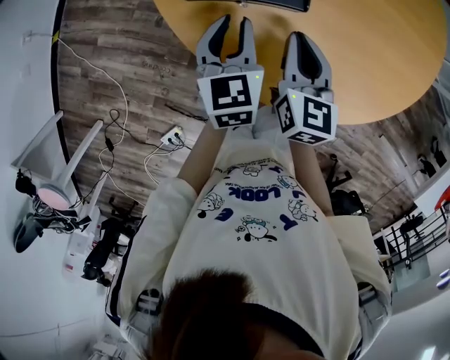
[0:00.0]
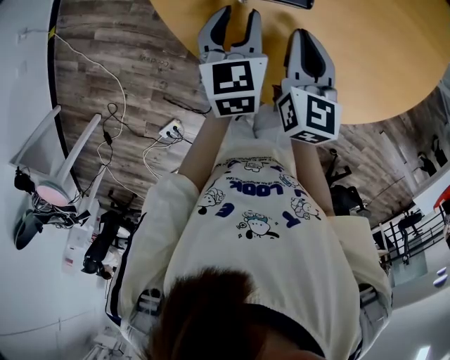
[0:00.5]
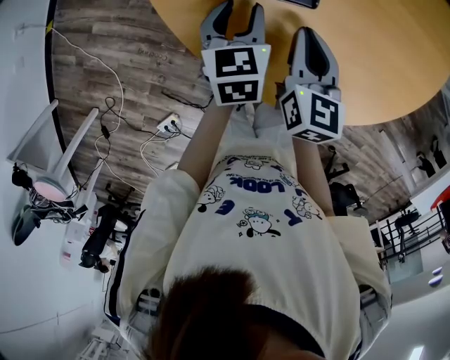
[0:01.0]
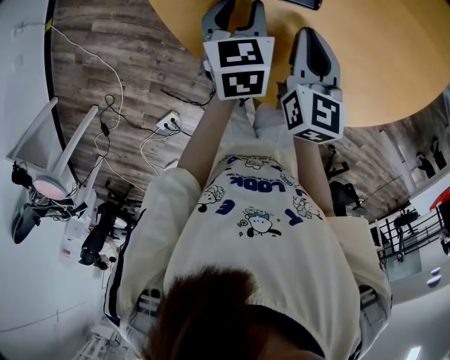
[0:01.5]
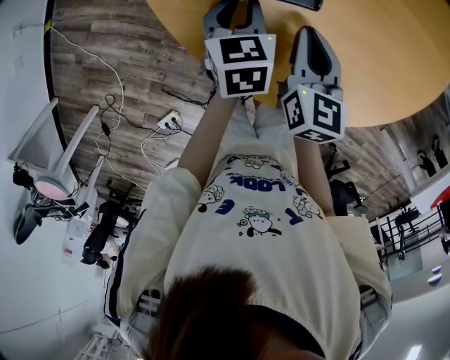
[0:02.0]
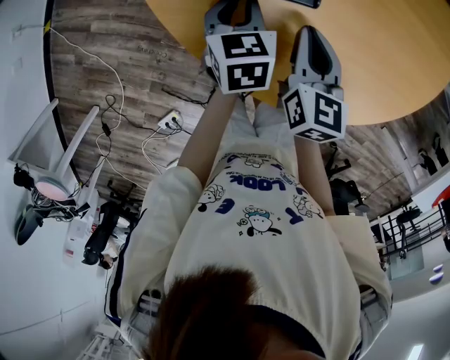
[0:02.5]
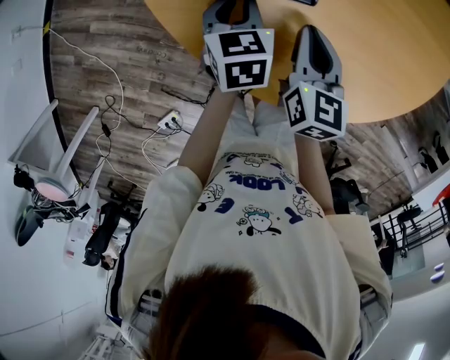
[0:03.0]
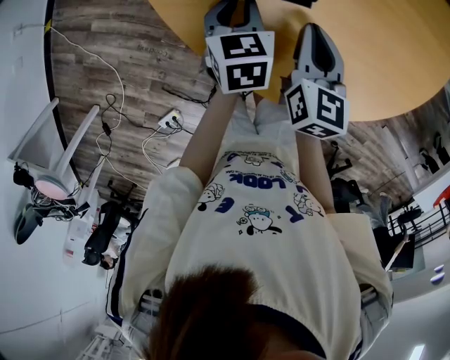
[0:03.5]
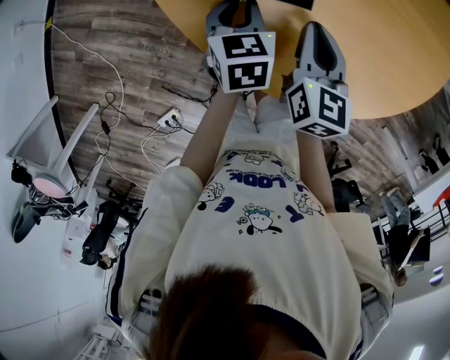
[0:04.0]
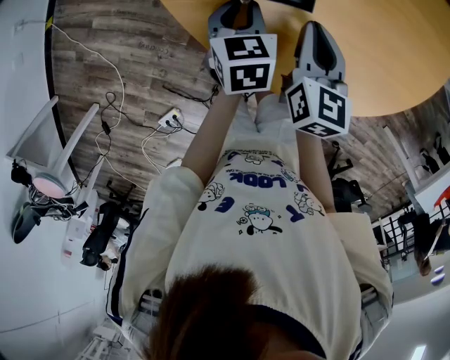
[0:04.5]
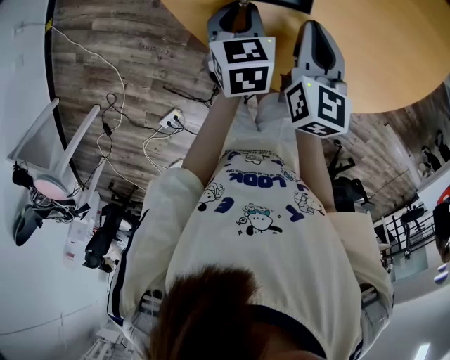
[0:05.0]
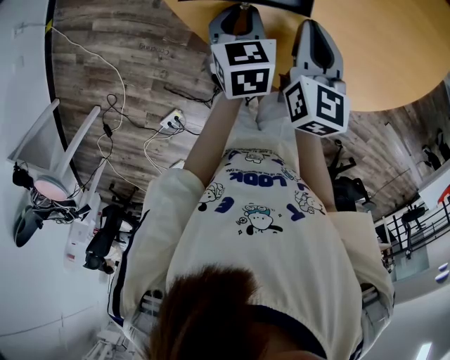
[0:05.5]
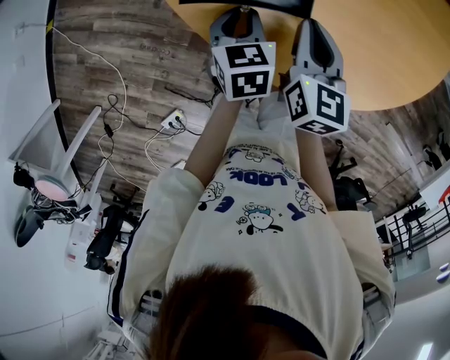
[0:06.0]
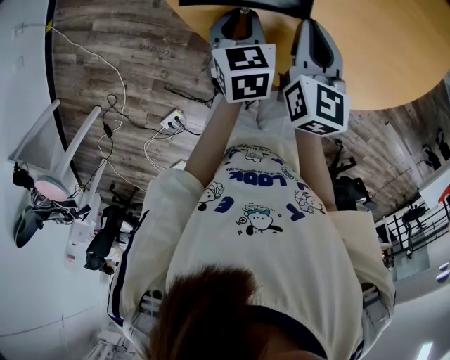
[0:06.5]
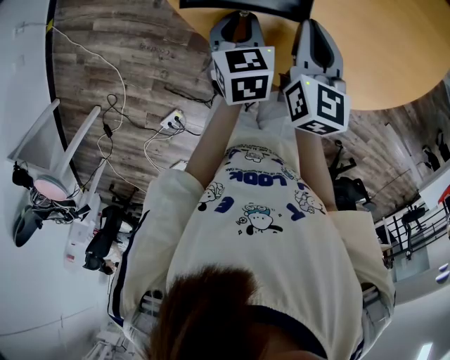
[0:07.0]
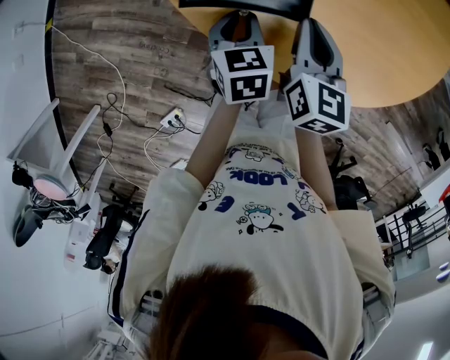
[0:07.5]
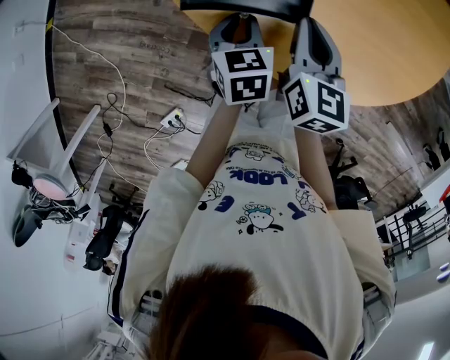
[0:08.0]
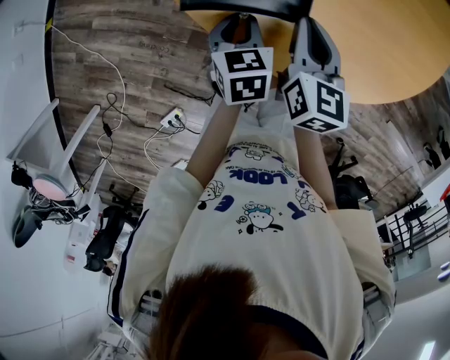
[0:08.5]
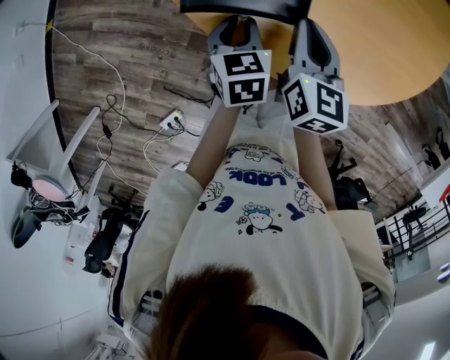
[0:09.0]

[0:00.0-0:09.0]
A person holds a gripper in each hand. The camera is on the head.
0:00.0 to 0:02.0: The left gripper heads downward, covering about 5 cm.
0:02.0 to 0:04.5: The grippers stay close to where they were, moving slightly.
0:04.5 to 0:07.0: There are only small adjustments of the grippers.
0:07.0 to 0:09.0: The grippers stay close to where they were, moving slightly.

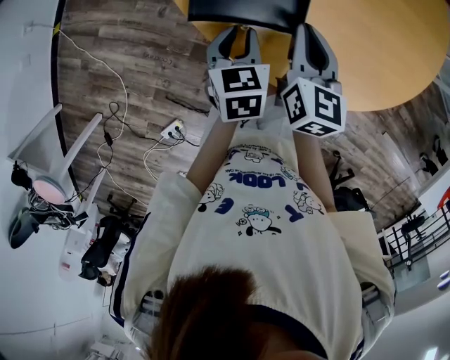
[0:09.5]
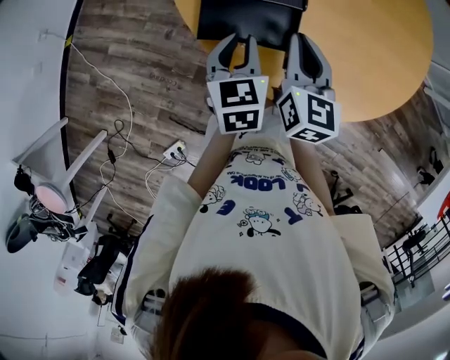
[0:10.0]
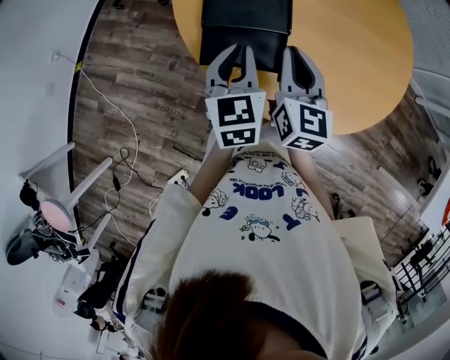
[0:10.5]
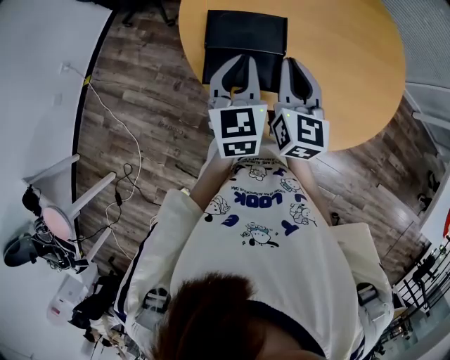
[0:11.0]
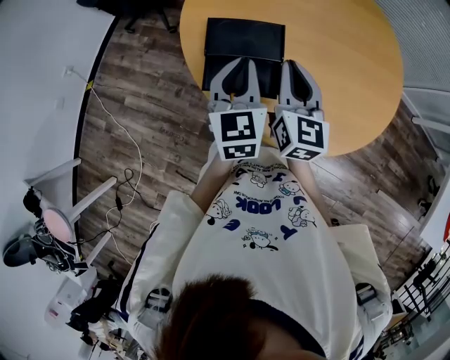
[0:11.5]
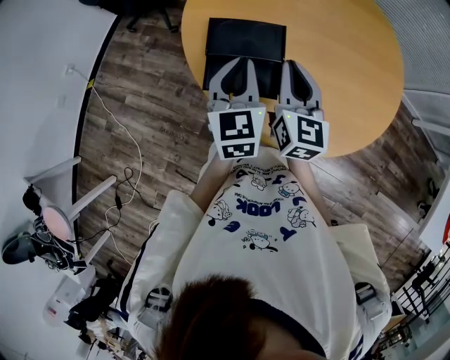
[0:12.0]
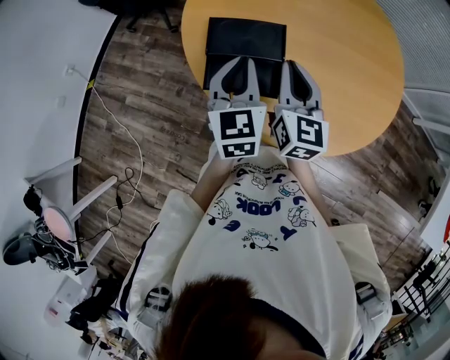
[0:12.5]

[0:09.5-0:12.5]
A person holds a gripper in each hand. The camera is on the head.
0:09.5 to 0:11.0: The two grippers go some 15 cm upward. The left gripper turns by about 30 degrees.
0:11.0 to 0:12.5: The grippers stay close to where they were, moving slightly.

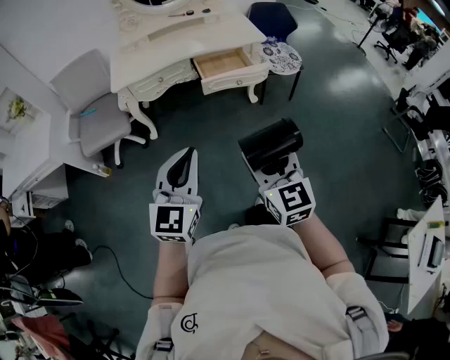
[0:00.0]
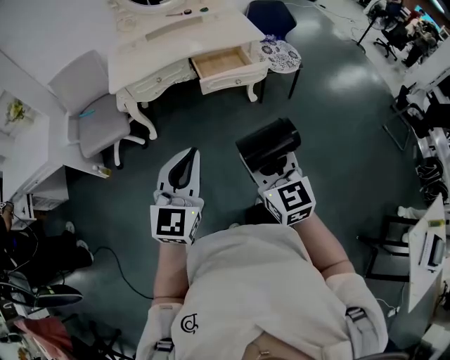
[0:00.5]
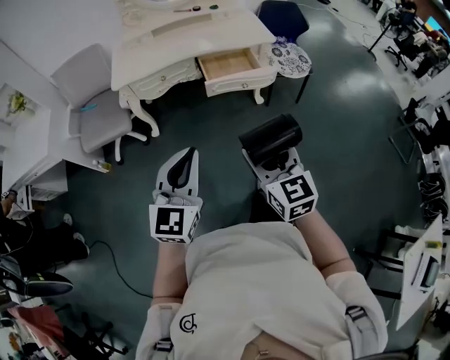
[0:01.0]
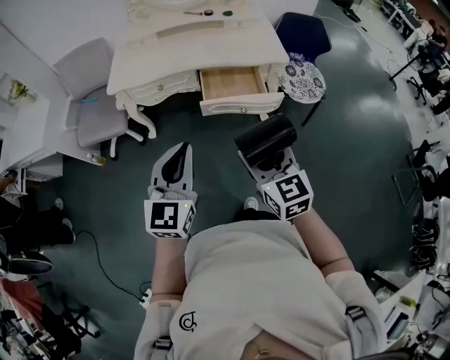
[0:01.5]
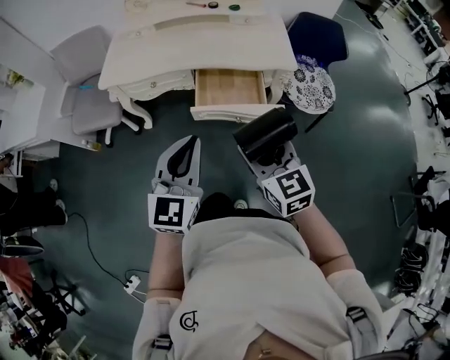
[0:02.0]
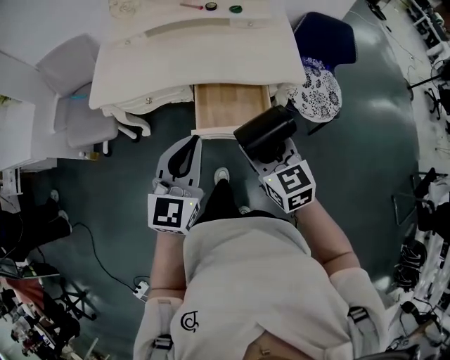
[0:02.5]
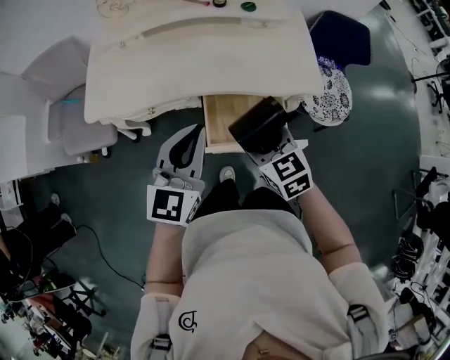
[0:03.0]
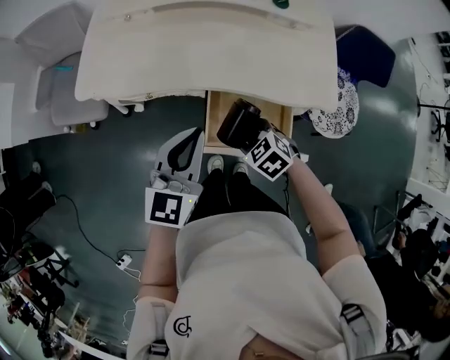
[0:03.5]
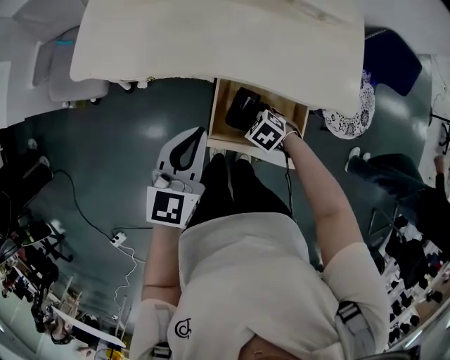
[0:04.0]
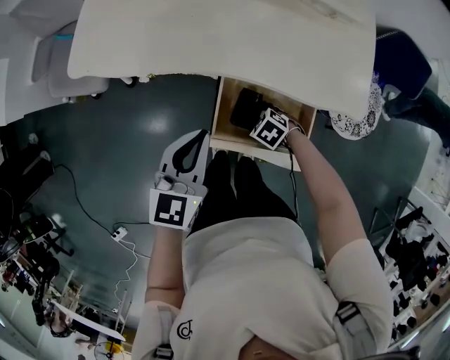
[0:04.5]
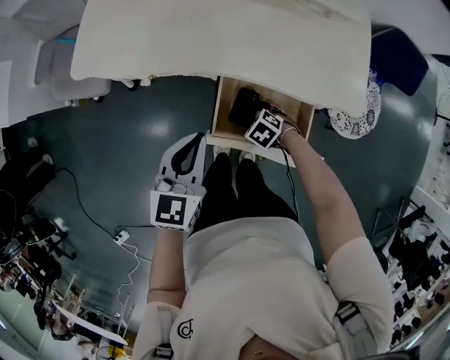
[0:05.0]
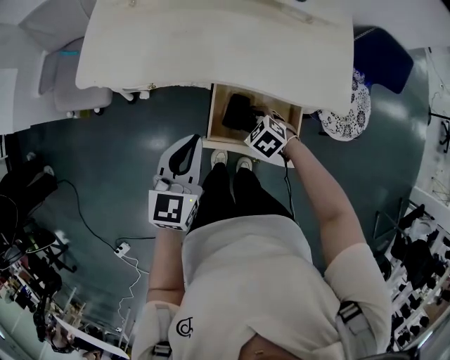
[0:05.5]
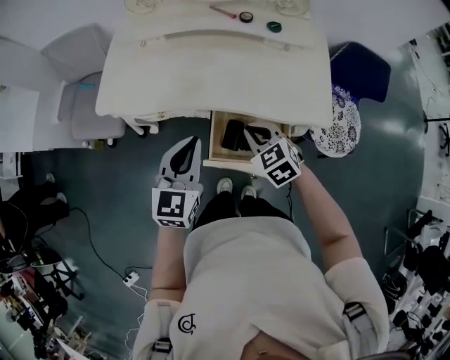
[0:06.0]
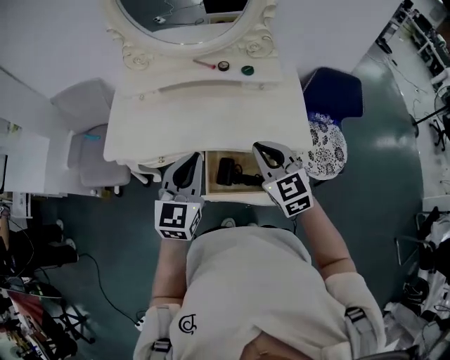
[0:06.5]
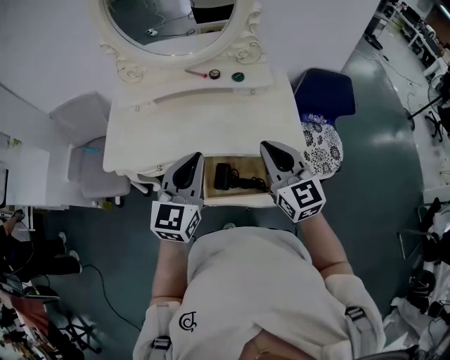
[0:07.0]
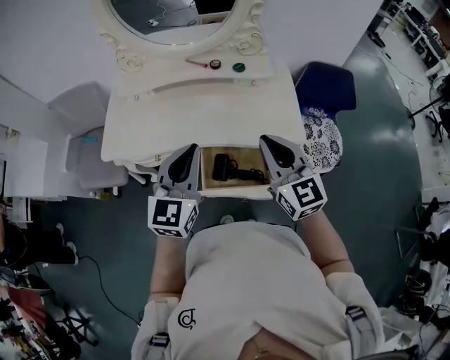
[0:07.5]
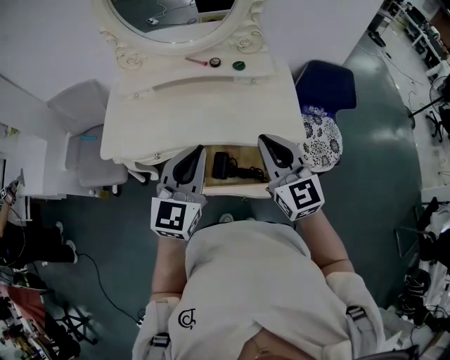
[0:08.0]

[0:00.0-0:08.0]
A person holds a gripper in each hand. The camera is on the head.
0:00.0 to 0:02.0: The two grippers go some 35 cm forward and to the right. The right gripper rotates about 20 degrees.
0:02.0 to 0:04.0: The left gripper changes place by approximately 35 cm, while the right gripper moves downward, approximately 35 cm, and tilts its fingers some 50 degrees downward.
0:04.0 to 0:06.0: The left gripper is displaced upward by about 5 cm; the right gripper shifts approximately 20 cm upward, turns by about 40 degrees, and closes.
0:06.0 to 0:08.0: The right gripper travels upward and to the right by roughly 25 cm, and tilts its fingers about 40 degrees upward; the left gripper heads upward and to the right, covering some 15 cm.

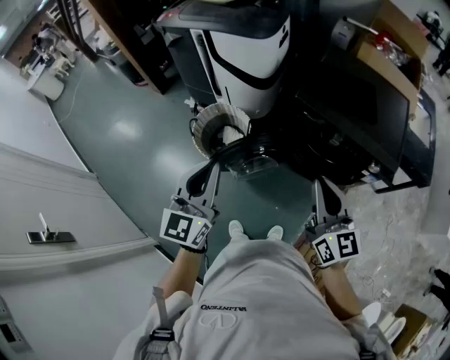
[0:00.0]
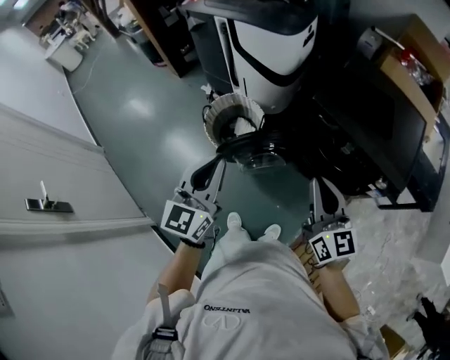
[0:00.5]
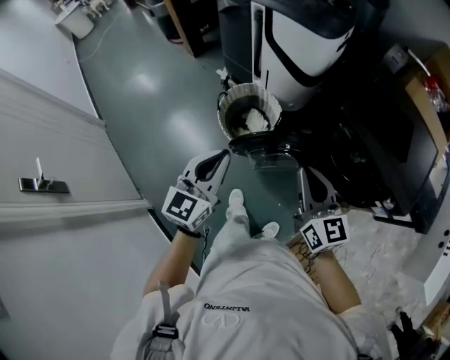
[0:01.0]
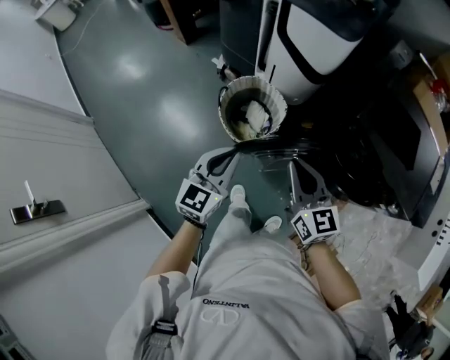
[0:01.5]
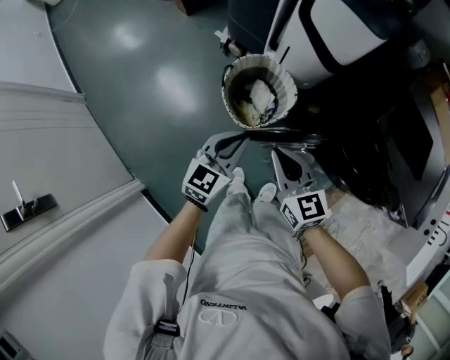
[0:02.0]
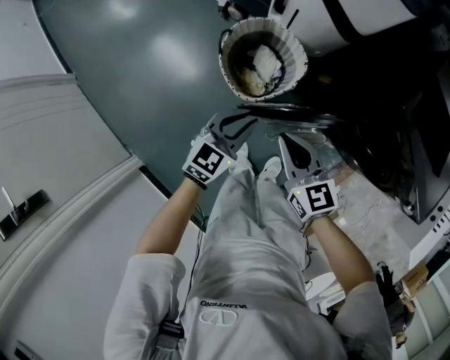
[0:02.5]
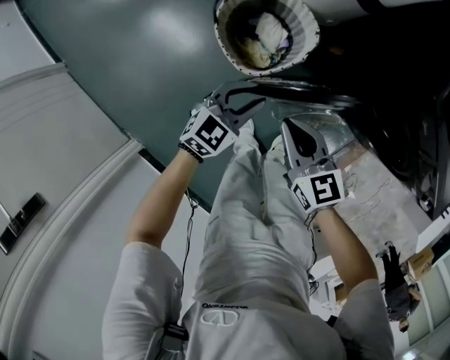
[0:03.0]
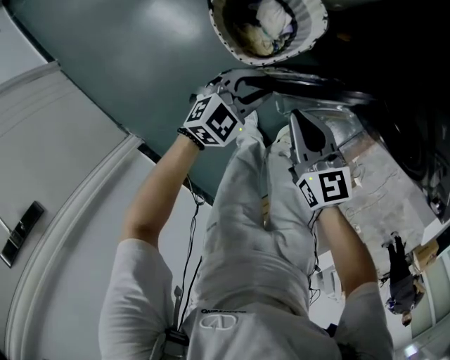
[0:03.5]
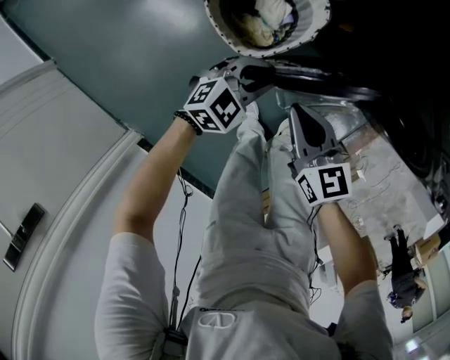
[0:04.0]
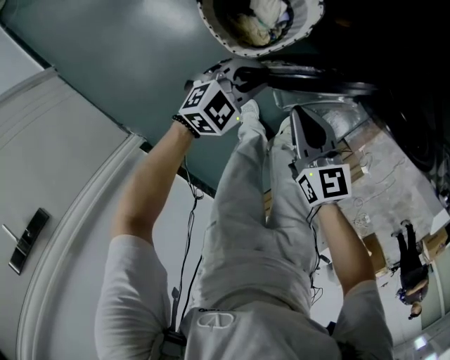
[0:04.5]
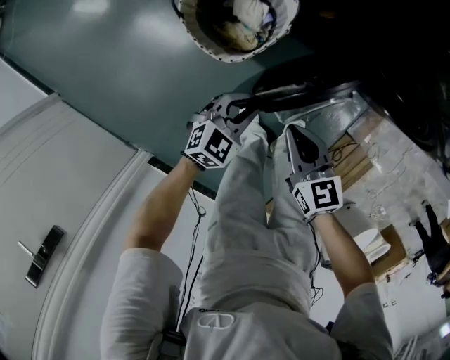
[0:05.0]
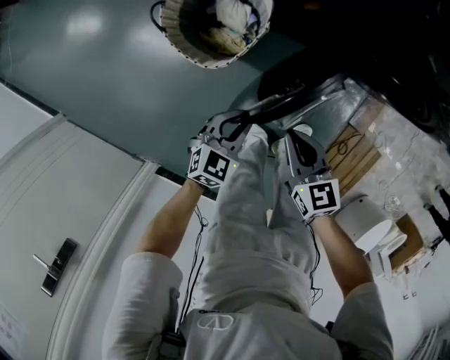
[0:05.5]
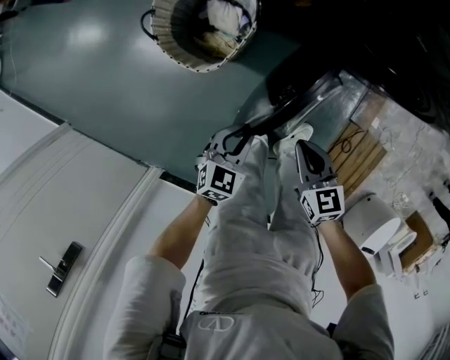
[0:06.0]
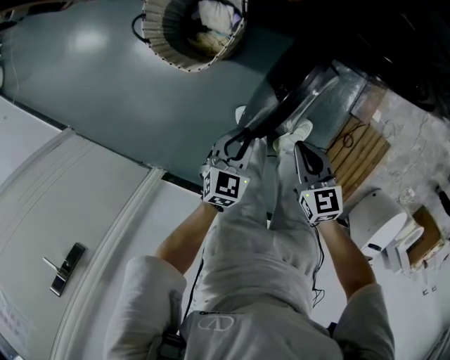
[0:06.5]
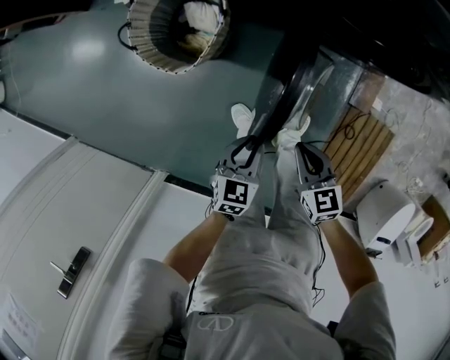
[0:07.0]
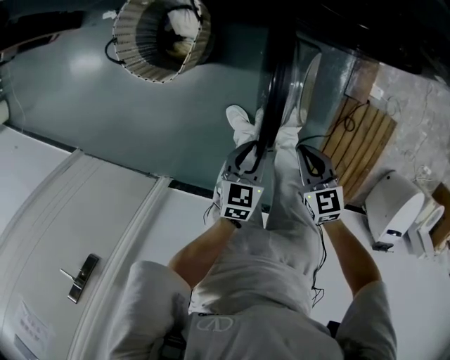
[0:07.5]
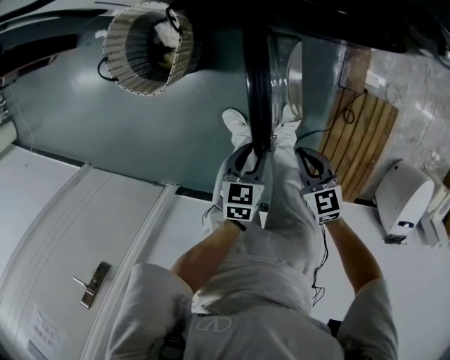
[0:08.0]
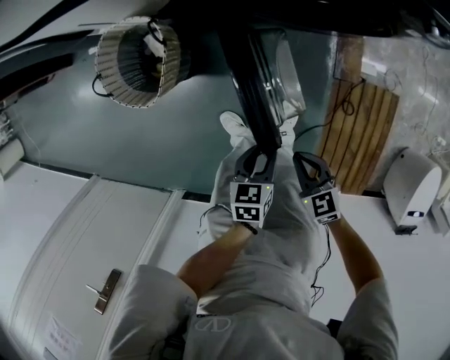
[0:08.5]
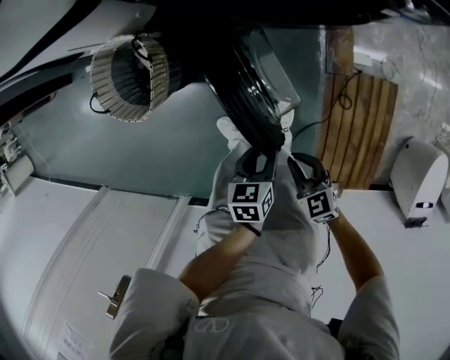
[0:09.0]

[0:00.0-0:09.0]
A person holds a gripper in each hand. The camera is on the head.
0:00.0 to 0:02.0: The left gripper travels downward, forward and to the left by about 35 cm, and changes its angle by about 20 degrees. The right gripper travels to the left, forward and downward by some 40 cm, and turns by some 30 degrees.
0:02.0 to 0:04.5: Both grippers travel together downward, roughly 25 cm. The left gripper rotates approximately 40 degrees.
0:04.5 to 0:07.0: The two grippers go roughly 25 cm to the right and backward. The left gripper turns by some 30 degrees.
0:07.0 to 0:09.0: The right gripper shifts roughly 15 cm to the right and backward; the left gripper shifts about 20 cm to the right, and swivels roughly 20 degrees.
